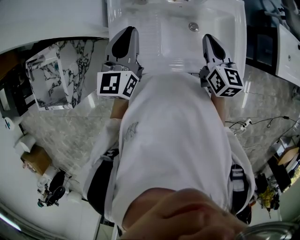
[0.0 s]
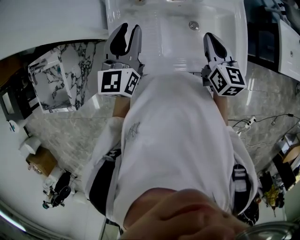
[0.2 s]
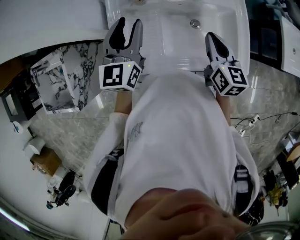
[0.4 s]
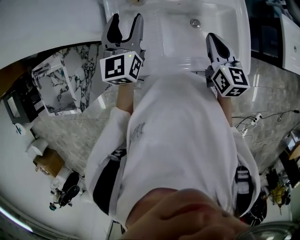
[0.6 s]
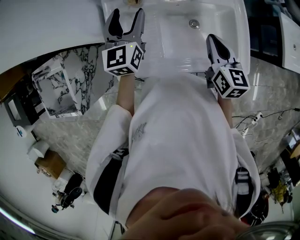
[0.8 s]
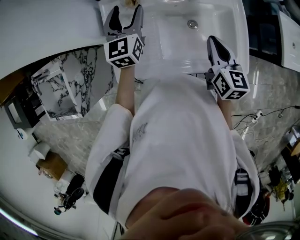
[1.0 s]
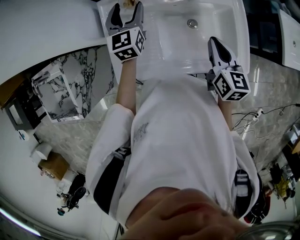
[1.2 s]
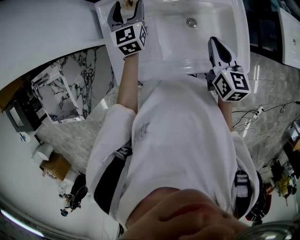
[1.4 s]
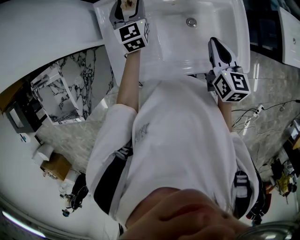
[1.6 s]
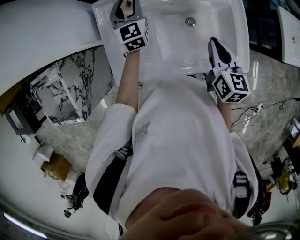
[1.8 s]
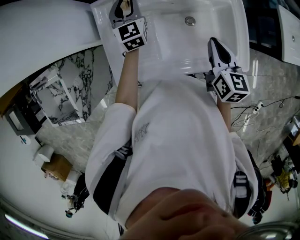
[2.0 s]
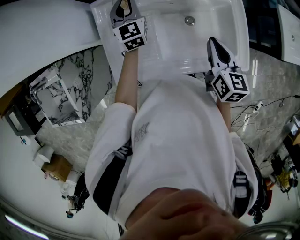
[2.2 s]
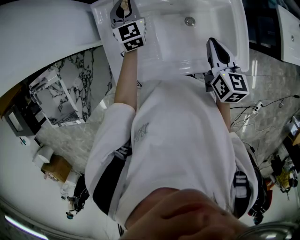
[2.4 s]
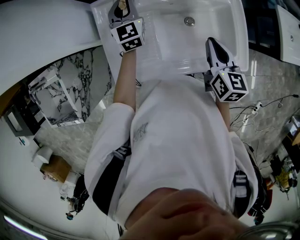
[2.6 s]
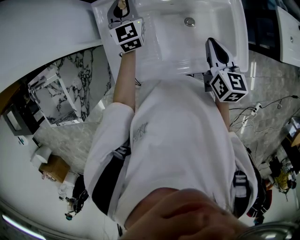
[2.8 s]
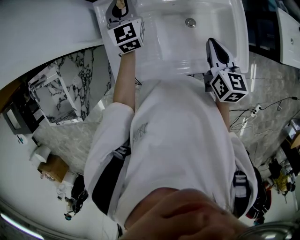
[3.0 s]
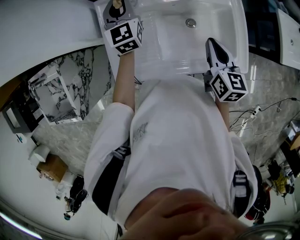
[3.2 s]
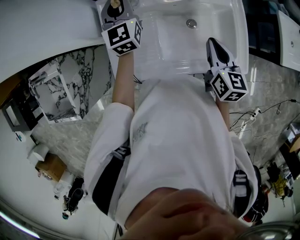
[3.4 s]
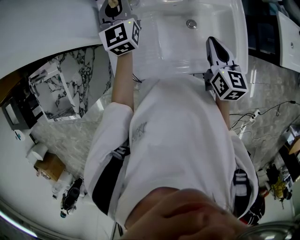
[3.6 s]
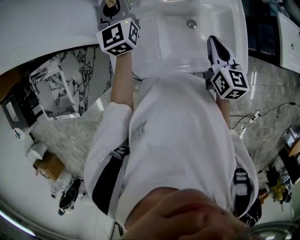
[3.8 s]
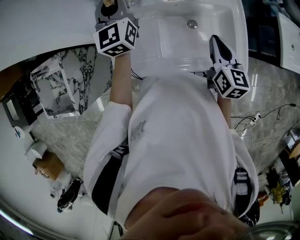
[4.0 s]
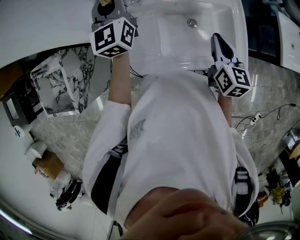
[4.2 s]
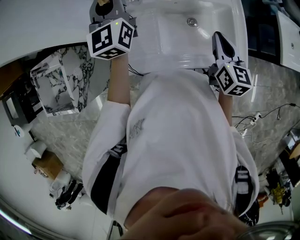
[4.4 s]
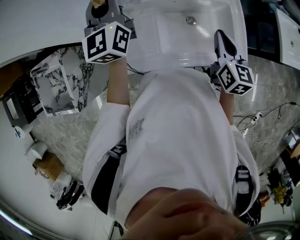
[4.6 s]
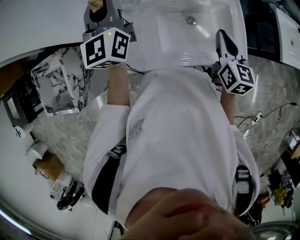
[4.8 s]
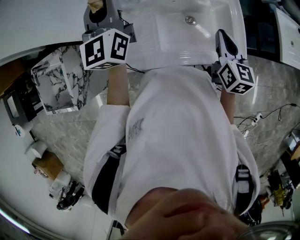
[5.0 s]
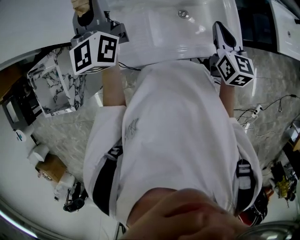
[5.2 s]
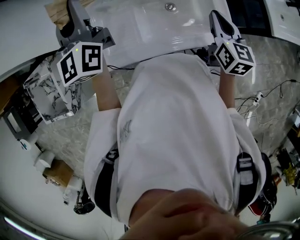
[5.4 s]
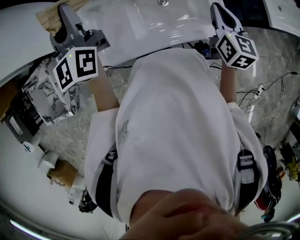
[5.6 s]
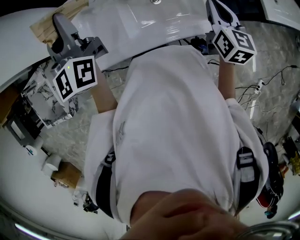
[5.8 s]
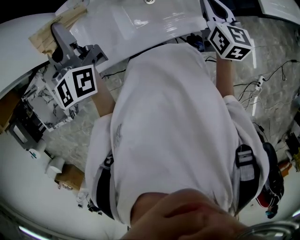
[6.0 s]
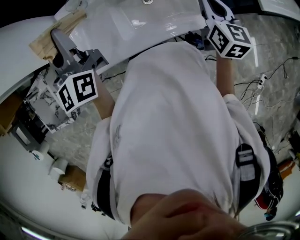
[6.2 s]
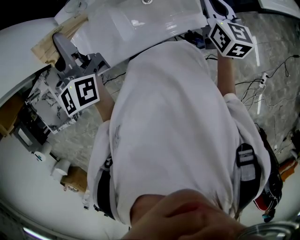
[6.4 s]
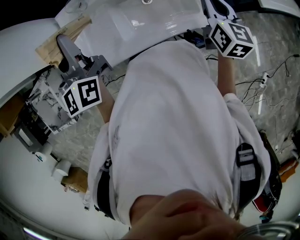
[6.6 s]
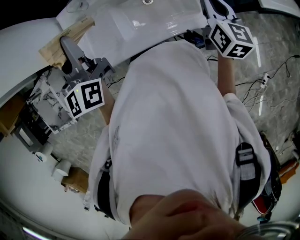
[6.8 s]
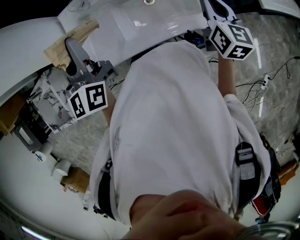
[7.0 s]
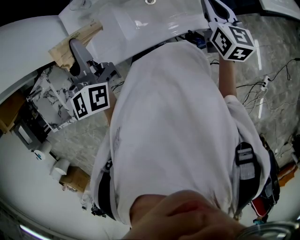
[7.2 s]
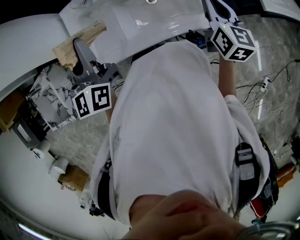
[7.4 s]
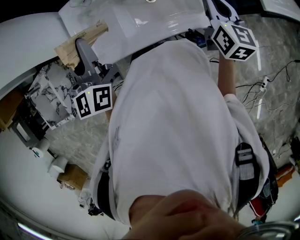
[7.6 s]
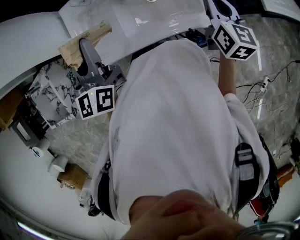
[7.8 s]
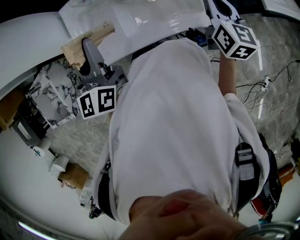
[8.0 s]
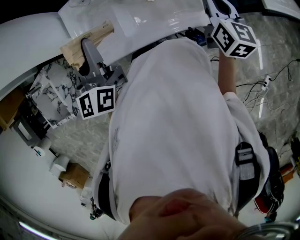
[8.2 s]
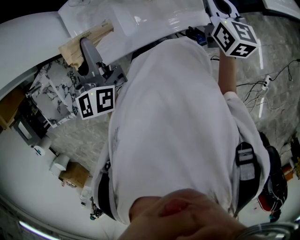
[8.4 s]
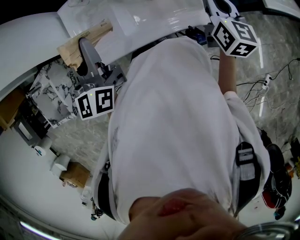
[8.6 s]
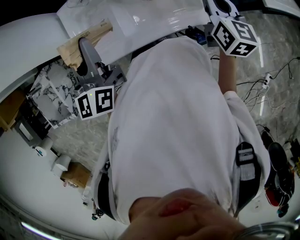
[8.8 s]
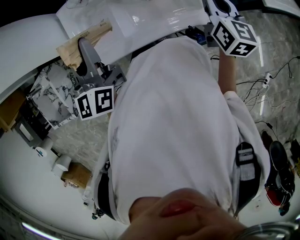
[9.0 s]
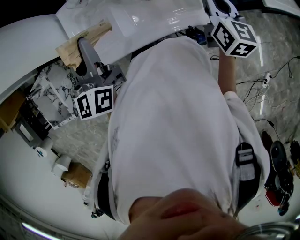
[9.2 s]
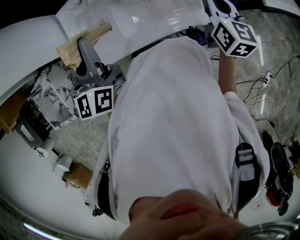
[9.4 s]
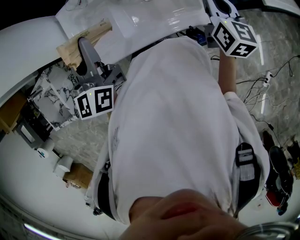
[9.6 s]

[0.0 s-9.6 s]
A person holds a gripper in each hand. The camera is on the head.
0.0 to 1.6 s: The left gripper heads forward and downward, covering approximately 20 cm, and opens up.
1.6 to 3.2 s: The left gripper goes approximately 5 cm upward, and closes up.
3.2 to 4.8 s: The right gripper ends up about 5 cm from where it was, while the left gripper shifts approximately 20 cm upward and backward.
4.8 to 6.4 s: The left gripper is displaced backward and to the right by about 15 cm. The right gripper shifts roughly 15 cm to the right.
6.4 to 8.0 s: The left gripper goes approximately 5 cm backward.
8.0 to 9.6 s: Neither gripper changes place.

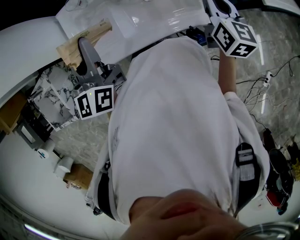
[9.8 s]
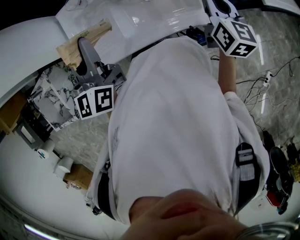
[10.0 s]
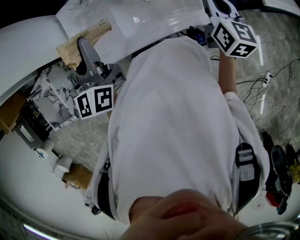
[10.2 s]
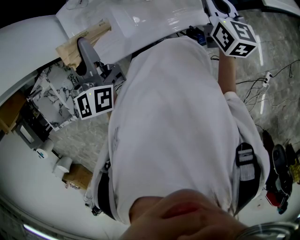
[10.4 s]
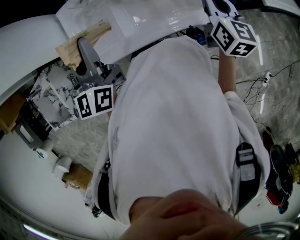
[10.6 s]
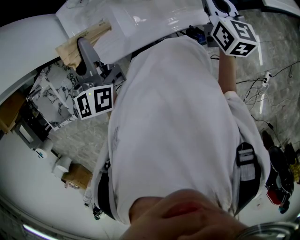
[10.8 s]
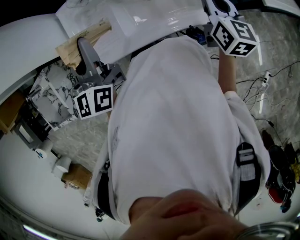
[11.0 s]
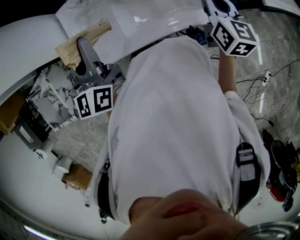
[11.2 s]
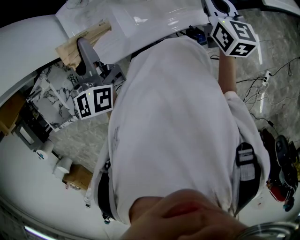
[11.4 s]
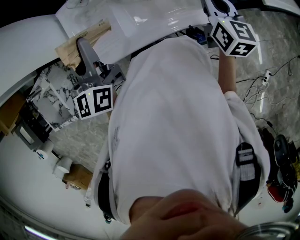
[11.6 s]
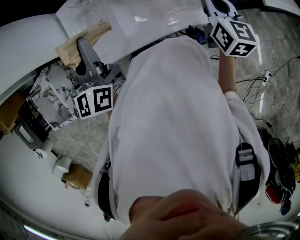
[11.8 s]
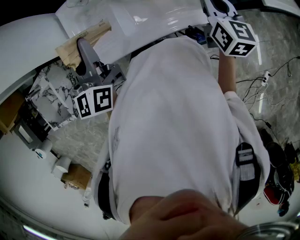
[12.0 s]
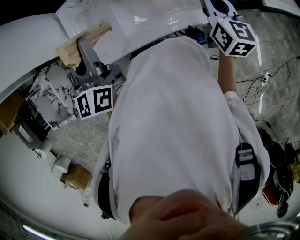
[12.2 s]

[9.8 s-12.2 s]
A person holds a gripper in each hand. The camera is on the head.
9.8 to 12.2 s: Both grippers stay put.

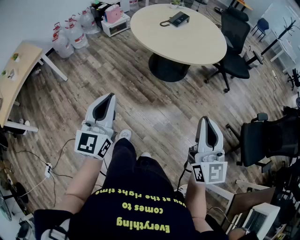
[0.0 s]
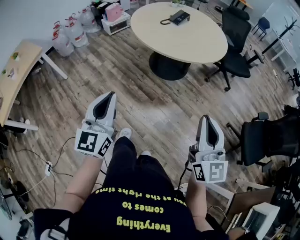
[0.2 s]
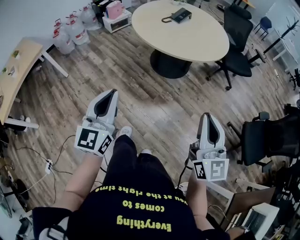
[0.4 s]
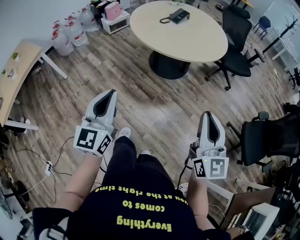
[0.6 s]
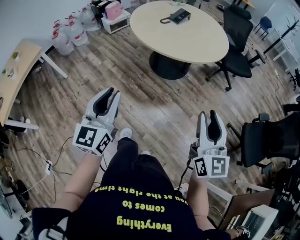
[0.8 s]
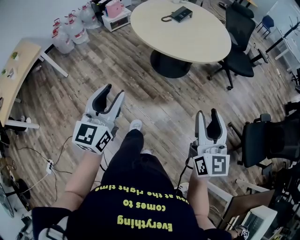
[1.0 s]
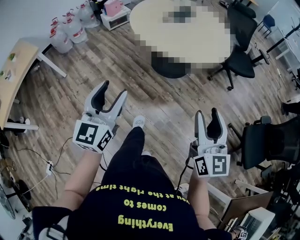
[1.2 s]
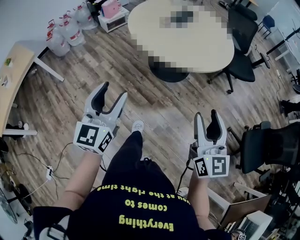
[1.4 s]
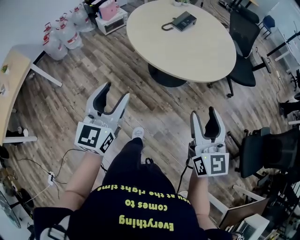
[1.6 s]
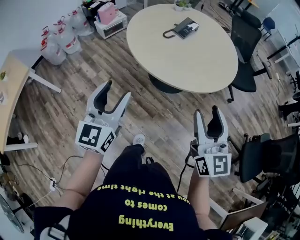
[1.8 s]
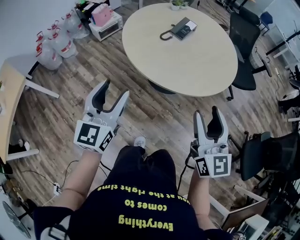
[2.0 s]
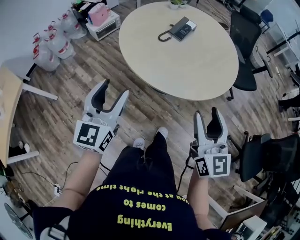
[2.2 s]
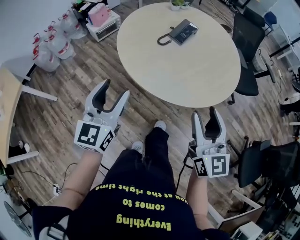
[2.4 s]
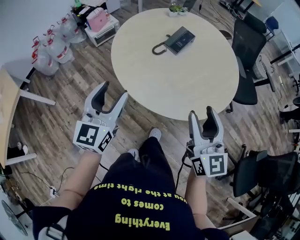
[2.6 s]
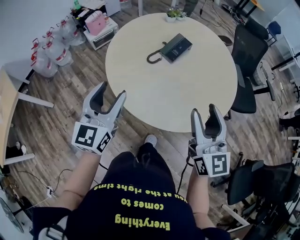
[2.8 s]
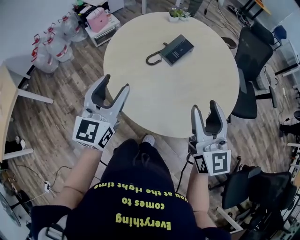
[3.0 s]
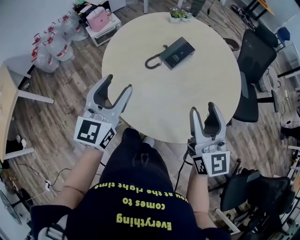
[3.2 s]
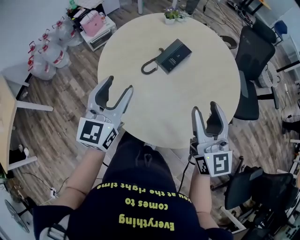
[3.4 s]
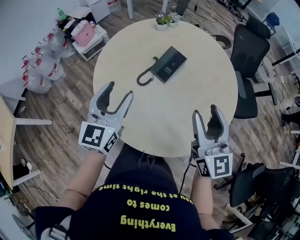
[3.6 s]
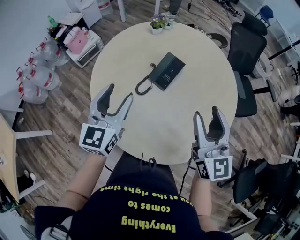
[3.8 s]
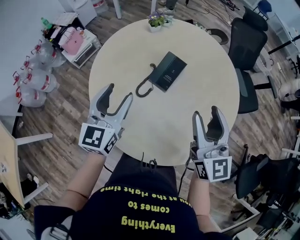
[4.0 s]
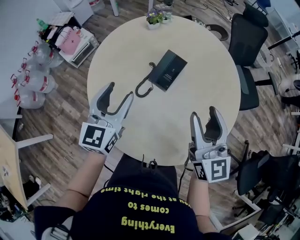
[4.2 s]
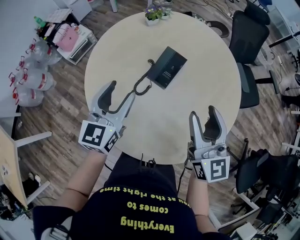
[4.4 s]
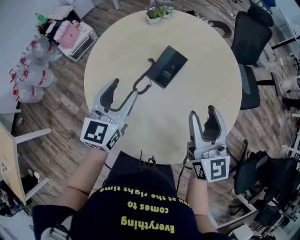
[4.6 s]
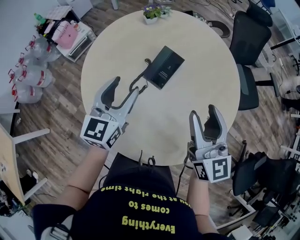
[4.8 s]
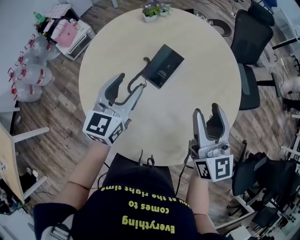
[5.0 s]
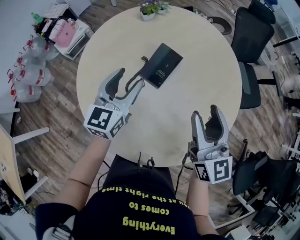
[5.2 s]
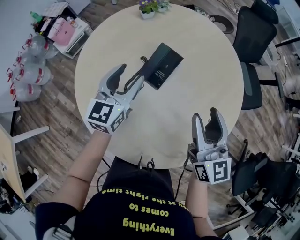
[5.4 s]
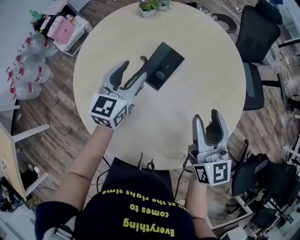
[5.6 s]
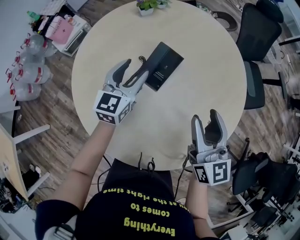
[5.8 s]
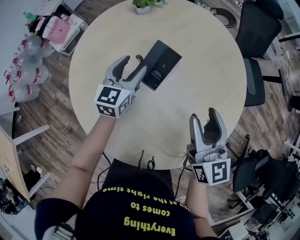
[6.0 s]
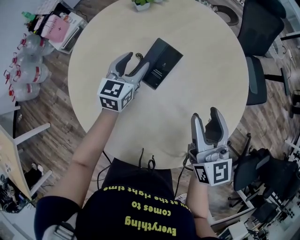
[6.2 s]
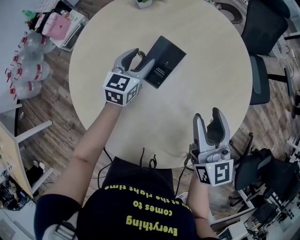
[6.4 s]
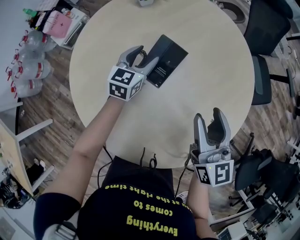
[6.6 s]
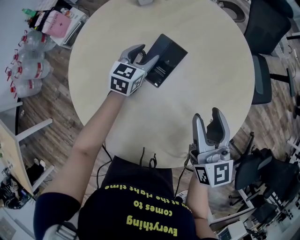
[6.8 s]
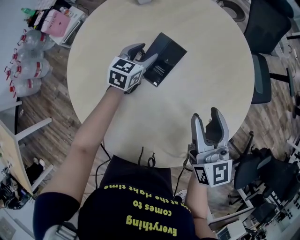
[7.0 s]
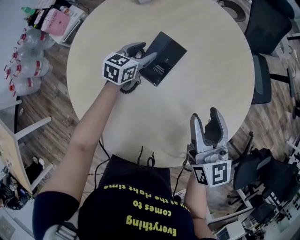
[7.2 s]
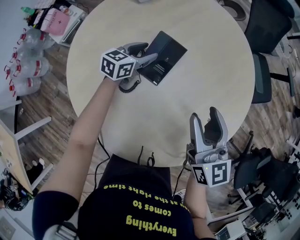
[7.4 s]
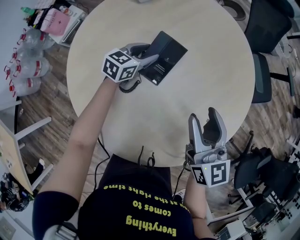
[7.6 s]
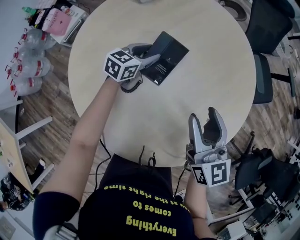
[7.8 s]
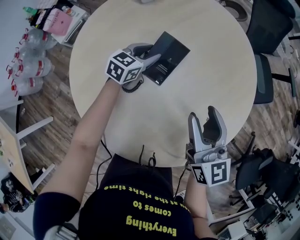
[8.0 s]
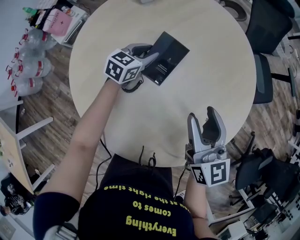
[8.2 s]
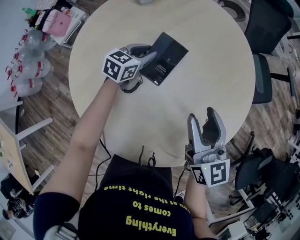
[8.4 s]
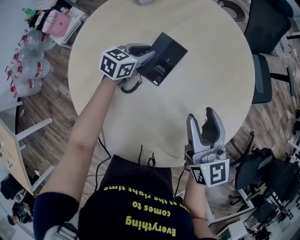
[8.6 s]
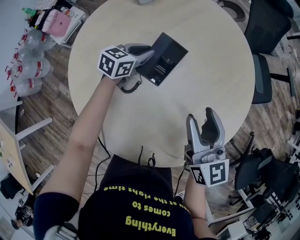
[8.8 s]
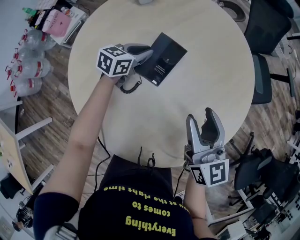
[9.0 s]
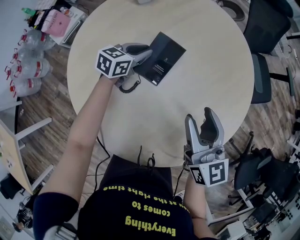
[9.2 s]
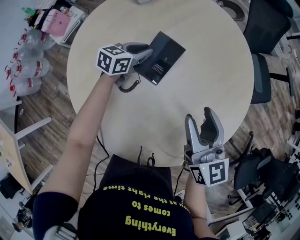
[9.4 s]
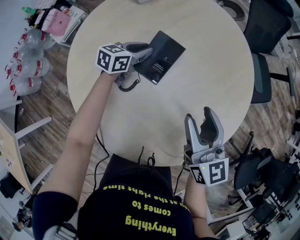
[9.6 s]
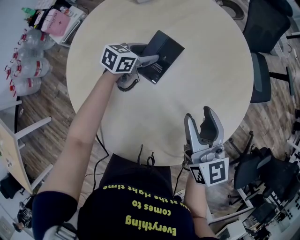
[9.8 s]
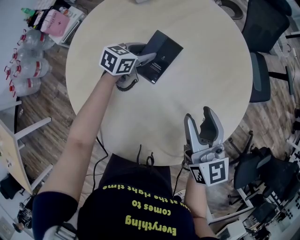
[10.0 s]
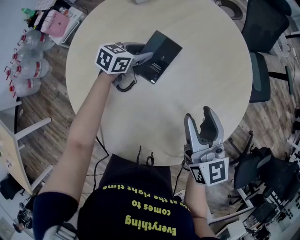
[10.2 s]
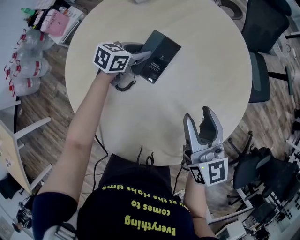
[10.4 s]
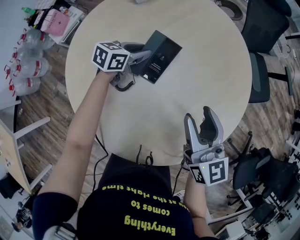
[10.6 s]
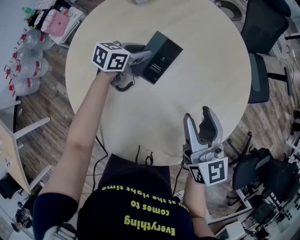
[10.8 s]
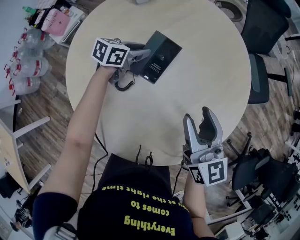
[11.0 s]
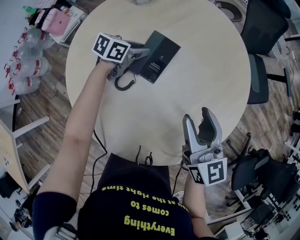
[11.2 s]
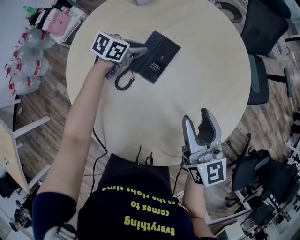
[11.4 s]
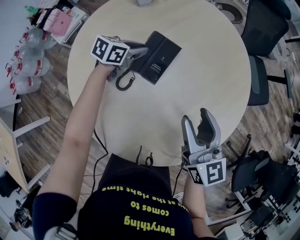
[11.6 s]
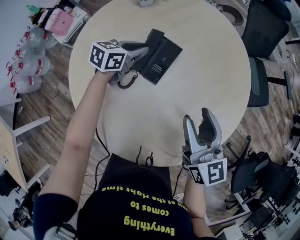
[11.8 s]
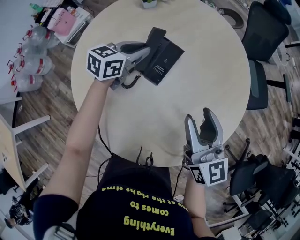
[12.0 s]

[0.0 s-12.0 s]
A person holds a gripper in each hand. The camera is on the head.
0.0 to 1.6 s: The grippers both shift forward by roughly 25 cm. The right gripper opens its fingers. Meanwhile the left gripper opens up.
1.6 to 3.0 s: The grippers both shift forward by roughly 40 cm.
3.0 to 4.4 s: Both grippers move forward, about 20 cm.
4.4 to 6.0 s: The left gripper goes roughly 20 cm forward, downward and to the right; the right gripper goes roughly 10 cm downward, to the right and forward.
6.0 to 7.6 s: The left gripper travels downward and forward by roughly 10 cm, and changes its angle by some 30 degrees.
7.6 to 9.0 s: The left gripper closes.
9.0 to 10.4 s: The left gripper opens, then closes once more.
10.4 to 12.0 s: The left gripper travels upward by about 10 cm.
